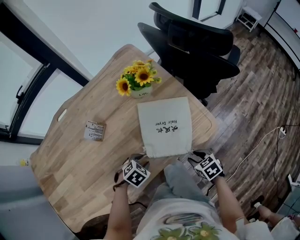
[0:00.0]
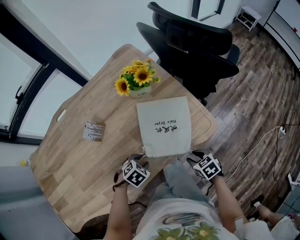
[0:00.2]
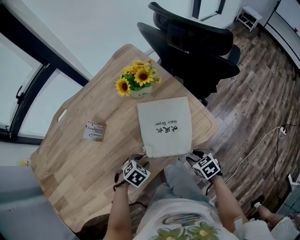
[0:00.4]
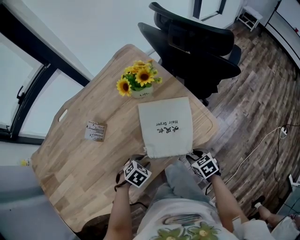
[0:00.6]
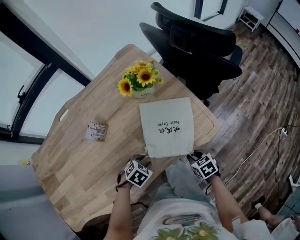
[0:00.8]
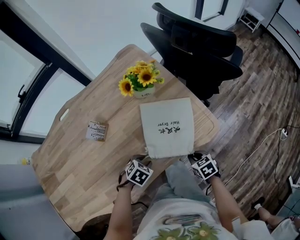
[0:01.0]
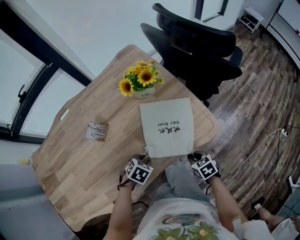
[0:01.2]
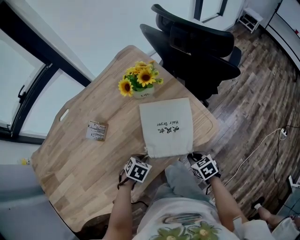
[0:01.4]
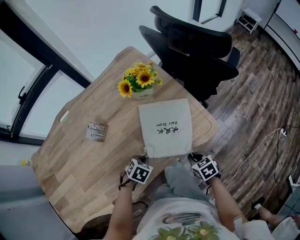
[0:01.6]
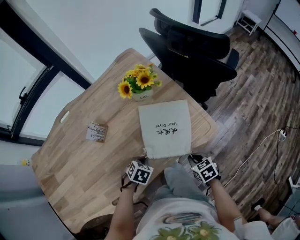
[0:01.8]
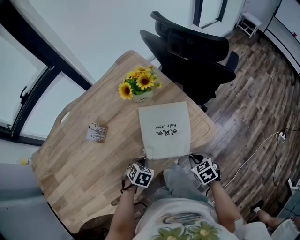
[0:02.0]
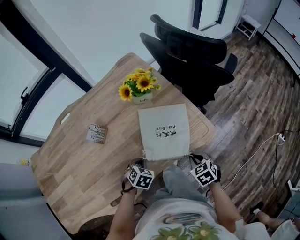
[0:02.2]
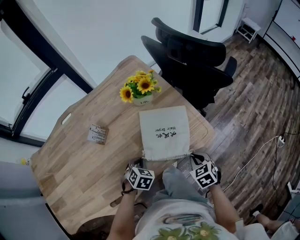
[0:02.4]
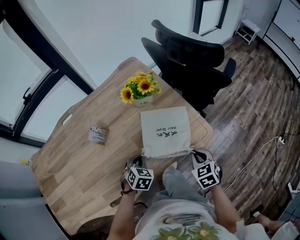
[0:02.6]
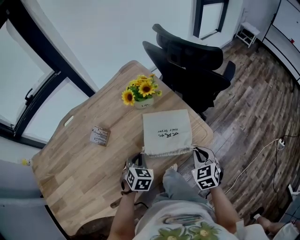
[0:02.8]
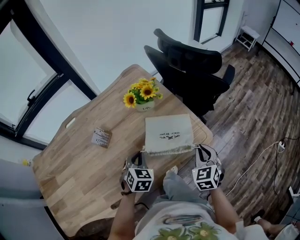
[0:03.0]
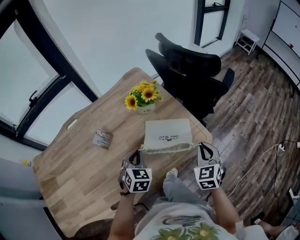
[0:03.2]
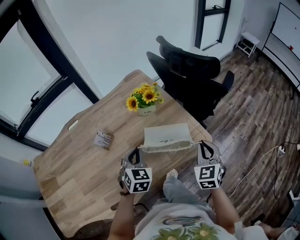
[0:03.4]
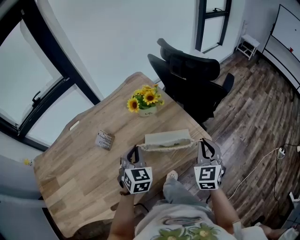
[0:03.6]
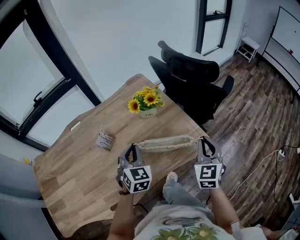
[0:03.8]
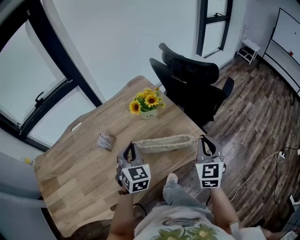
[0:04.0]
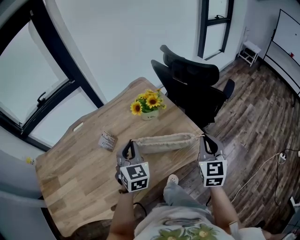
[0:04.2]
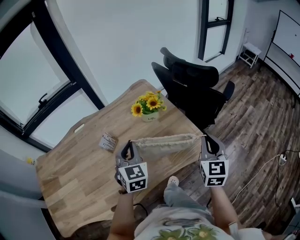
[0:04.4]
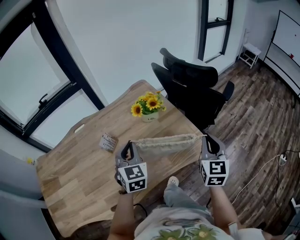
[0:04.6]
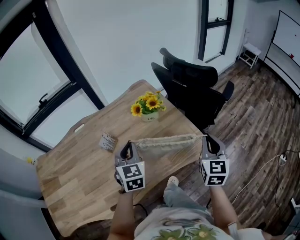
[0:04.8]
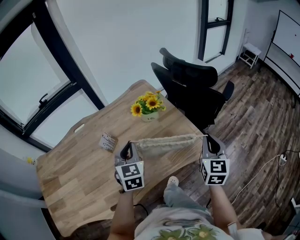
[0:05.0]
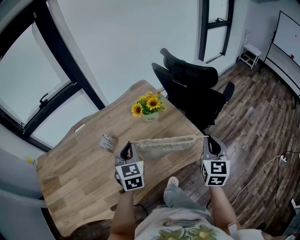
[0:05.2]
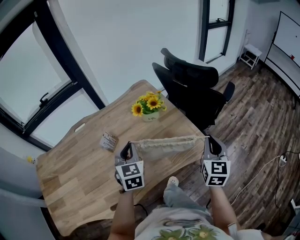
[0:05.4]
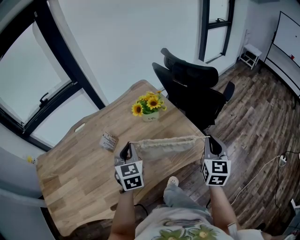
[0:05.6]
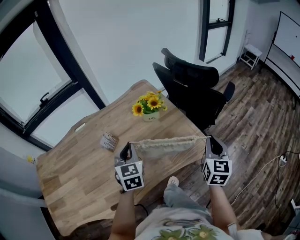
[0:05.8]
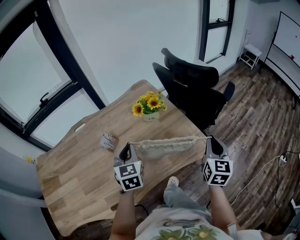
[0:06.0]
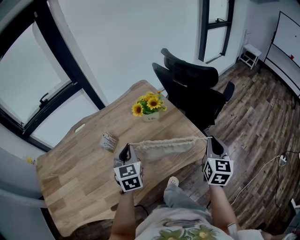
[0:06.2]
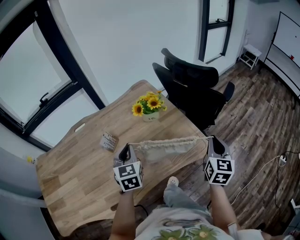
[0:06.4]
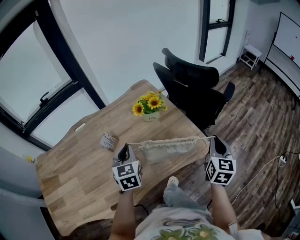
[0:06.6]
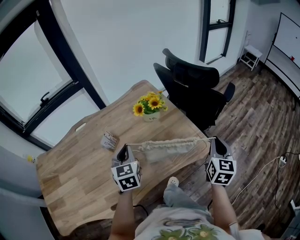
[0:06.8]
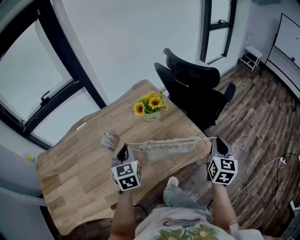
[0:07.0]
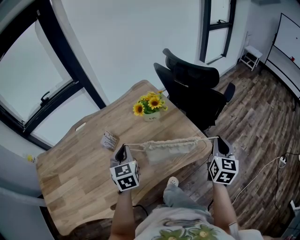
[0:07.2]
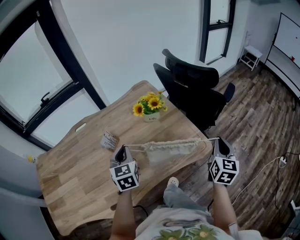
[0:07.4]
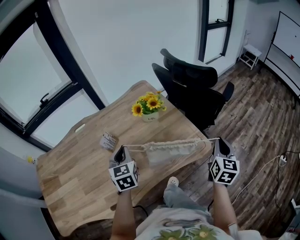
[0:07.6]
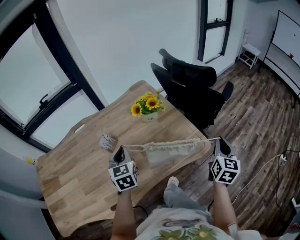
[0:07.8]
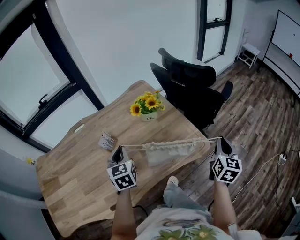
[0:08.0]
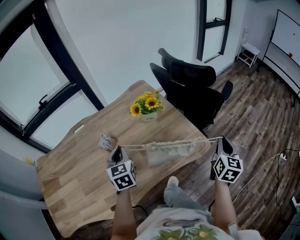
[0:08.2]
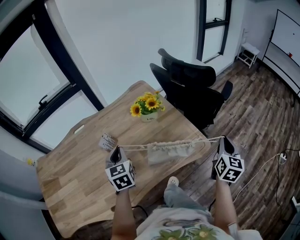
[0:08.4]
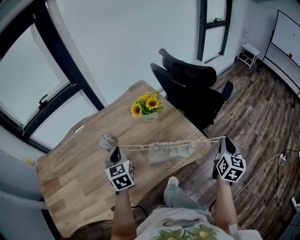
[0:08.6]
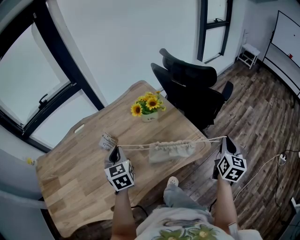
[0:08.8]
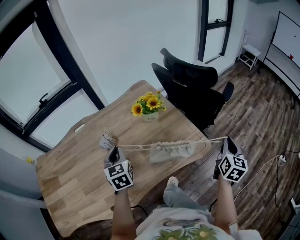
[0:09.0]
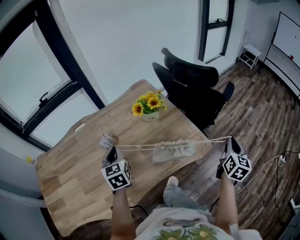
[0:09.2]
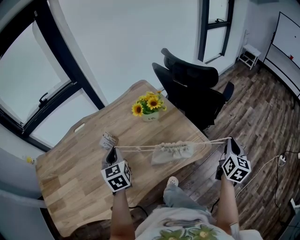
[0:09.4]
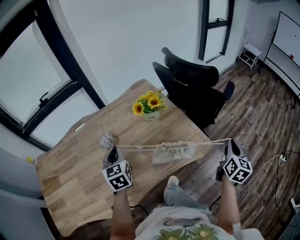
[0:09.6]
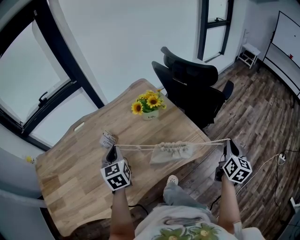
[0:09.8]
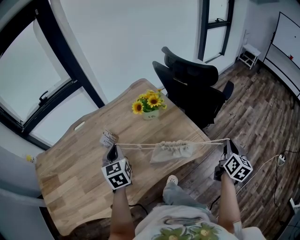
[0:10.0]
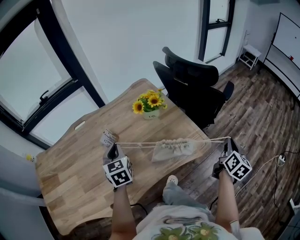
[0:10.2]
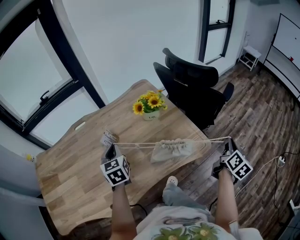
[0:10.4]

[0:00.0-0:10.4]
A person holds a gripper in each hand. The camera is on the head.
0:00.0 to 0:01.4: The right gripper closes up.
0:01.4 to 0:03.0: The left gripper goes roughly 15 cm upward and forward, and turns by roughly 40 degrees. Meanwhile the right gripper heads upward, covering roughly 20 cm, and changes its angle by roughly 40 degrees.
0:03.0 to 0:04.4: Both grippers travel together upward, roughly 15 cm. The right gripper turns by about 30 degrees; the left gripper changes its angle by approximately 30 degrees.
0:04.4 to 0:06.0: The grippers move only a little.
0:06.0 to 0:07.4: The grippers stay close to where they were, moving slightly.
0:07.4 to 0:09.0: The right gripper goes some 5 cm to the right.
0:09.0 to 0:10.4: The right gripper turns by roughly 20 degrees.

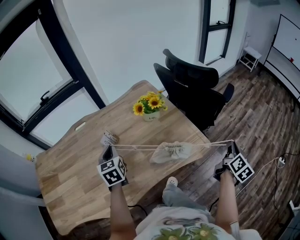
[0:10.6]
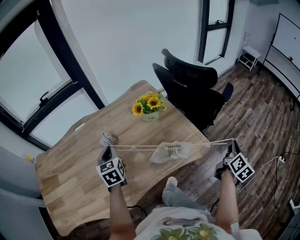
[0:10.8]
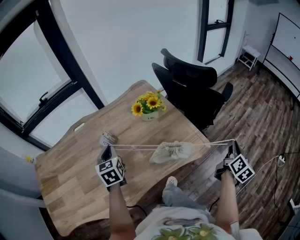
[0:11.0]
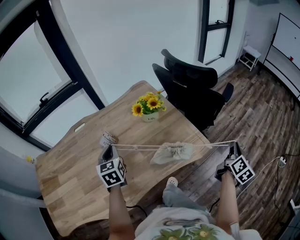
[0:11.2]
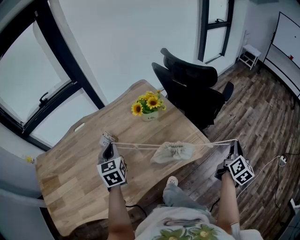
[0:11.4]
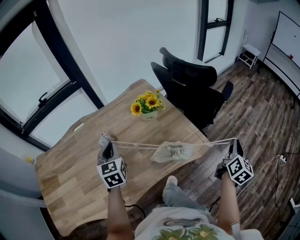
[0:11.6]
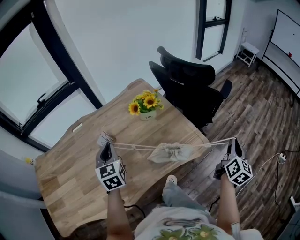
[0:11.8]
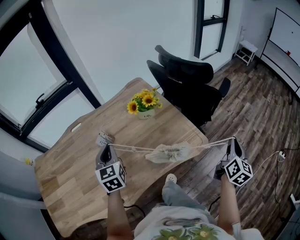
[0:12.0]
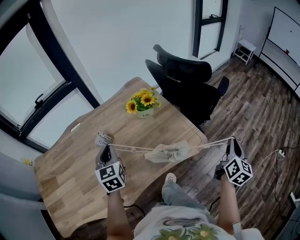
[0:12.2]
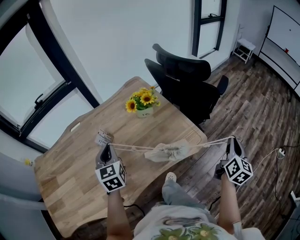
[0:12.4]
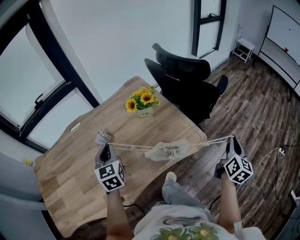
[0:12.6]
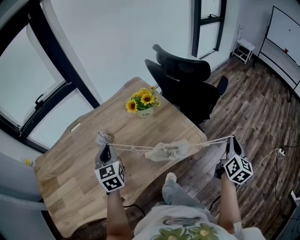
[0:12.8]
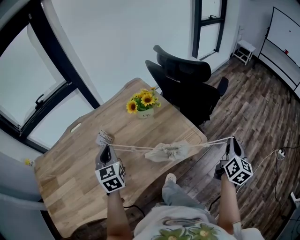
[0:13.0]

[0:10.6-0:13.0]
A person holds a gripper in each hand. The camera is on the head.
0:10.6 to 0:13.0: The grippers stay close to where they were, moving slightly.

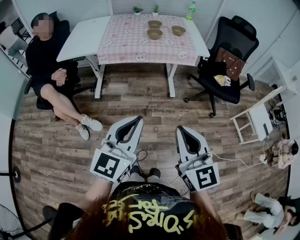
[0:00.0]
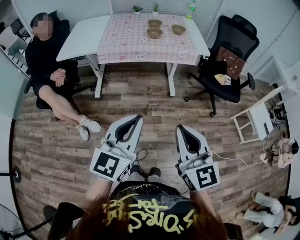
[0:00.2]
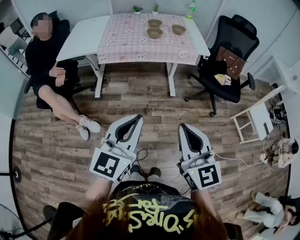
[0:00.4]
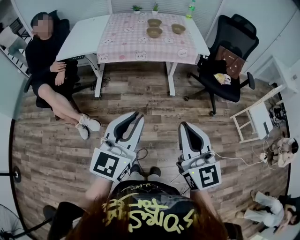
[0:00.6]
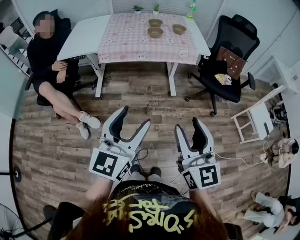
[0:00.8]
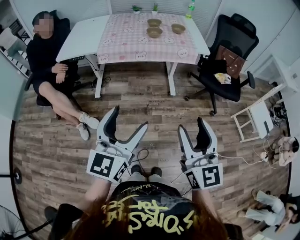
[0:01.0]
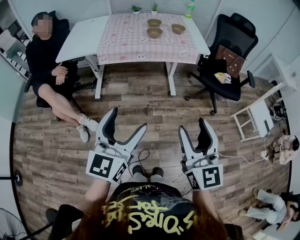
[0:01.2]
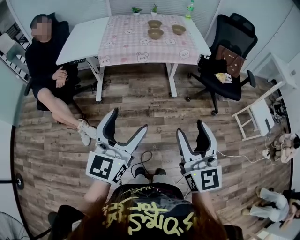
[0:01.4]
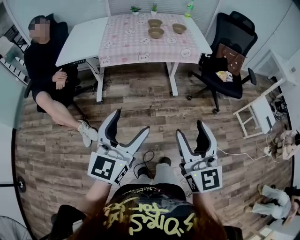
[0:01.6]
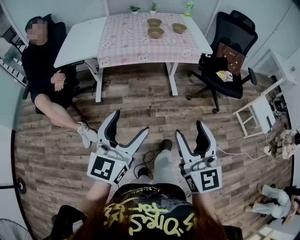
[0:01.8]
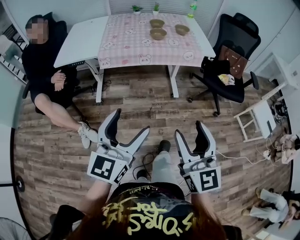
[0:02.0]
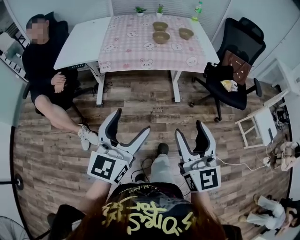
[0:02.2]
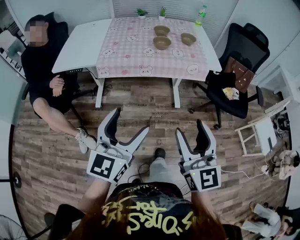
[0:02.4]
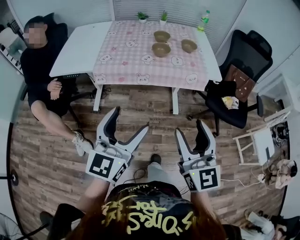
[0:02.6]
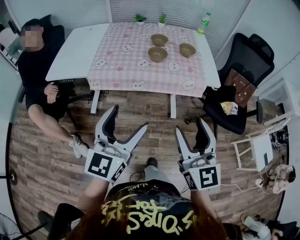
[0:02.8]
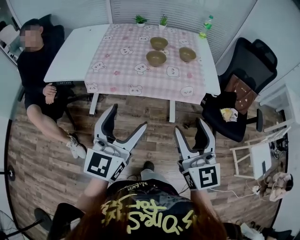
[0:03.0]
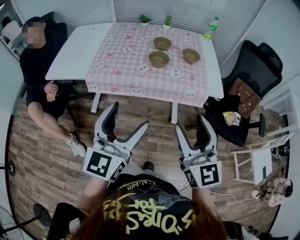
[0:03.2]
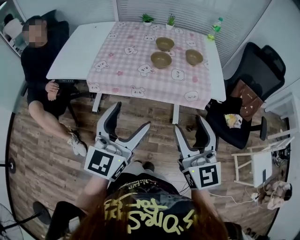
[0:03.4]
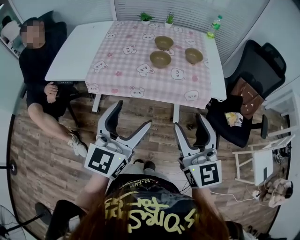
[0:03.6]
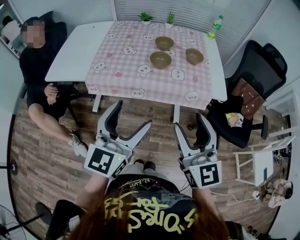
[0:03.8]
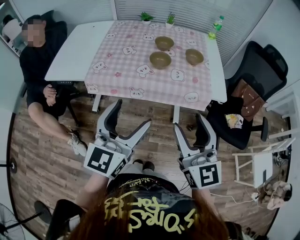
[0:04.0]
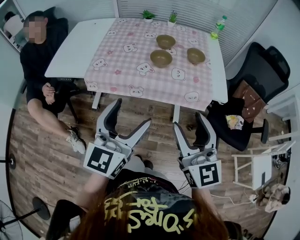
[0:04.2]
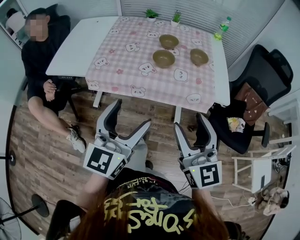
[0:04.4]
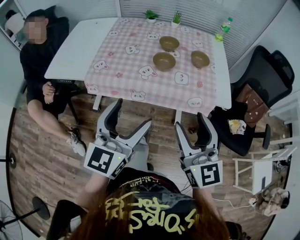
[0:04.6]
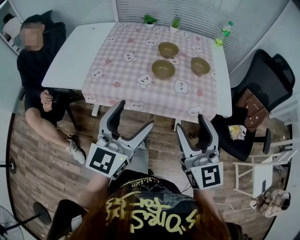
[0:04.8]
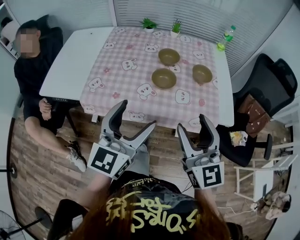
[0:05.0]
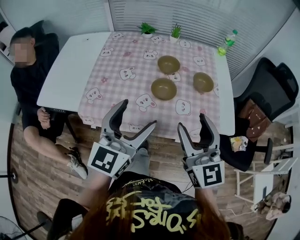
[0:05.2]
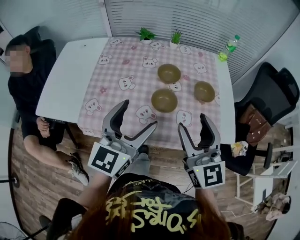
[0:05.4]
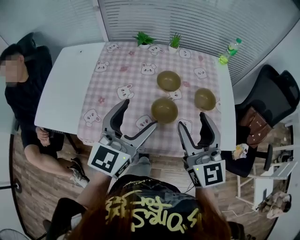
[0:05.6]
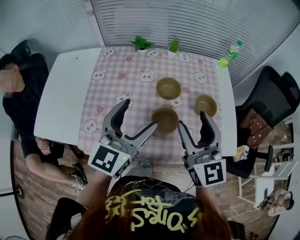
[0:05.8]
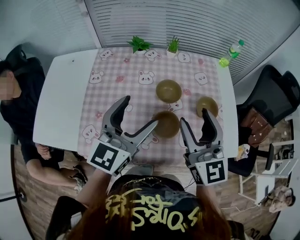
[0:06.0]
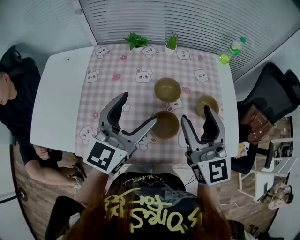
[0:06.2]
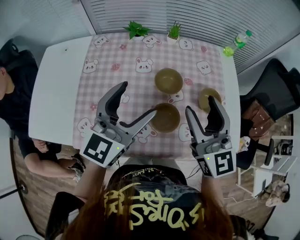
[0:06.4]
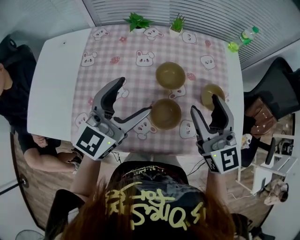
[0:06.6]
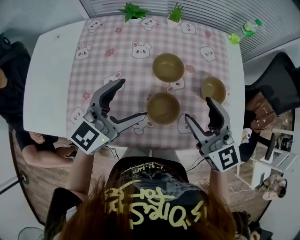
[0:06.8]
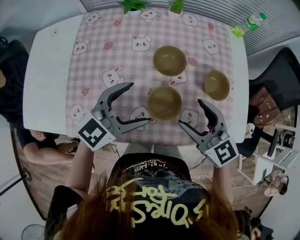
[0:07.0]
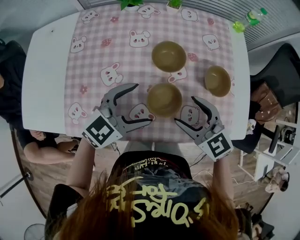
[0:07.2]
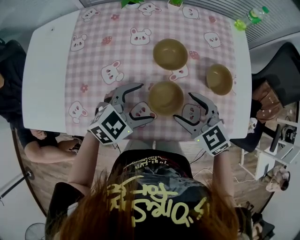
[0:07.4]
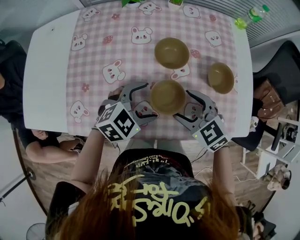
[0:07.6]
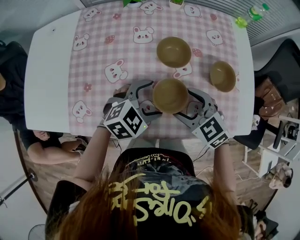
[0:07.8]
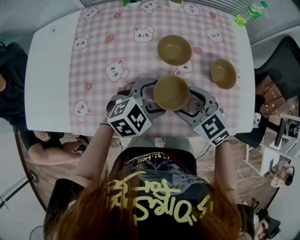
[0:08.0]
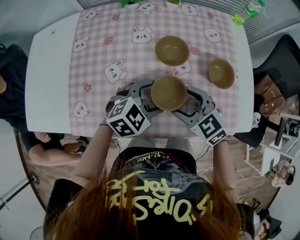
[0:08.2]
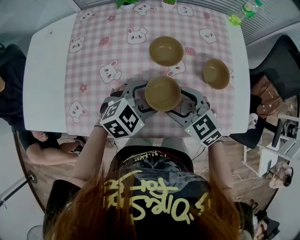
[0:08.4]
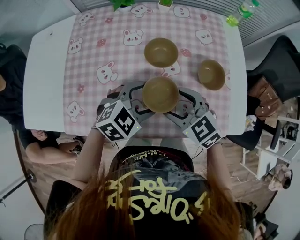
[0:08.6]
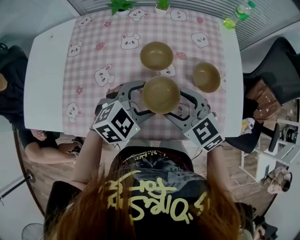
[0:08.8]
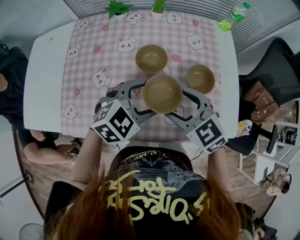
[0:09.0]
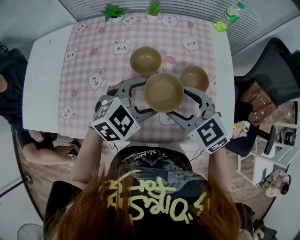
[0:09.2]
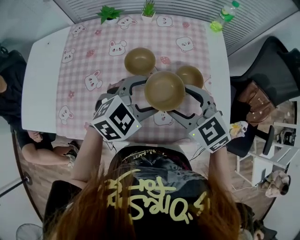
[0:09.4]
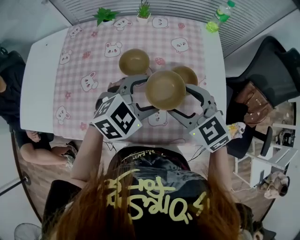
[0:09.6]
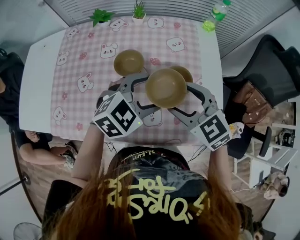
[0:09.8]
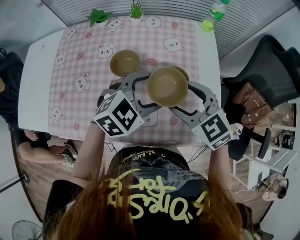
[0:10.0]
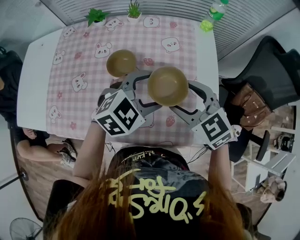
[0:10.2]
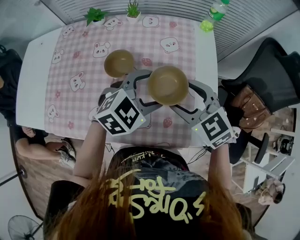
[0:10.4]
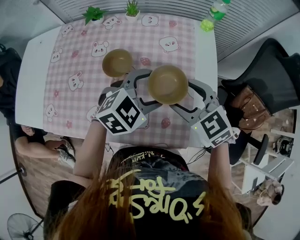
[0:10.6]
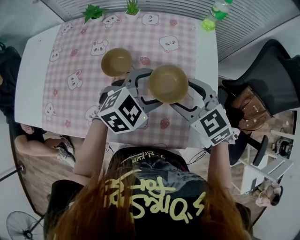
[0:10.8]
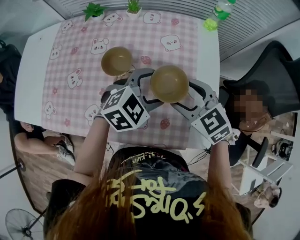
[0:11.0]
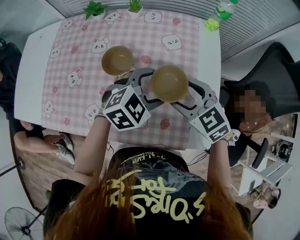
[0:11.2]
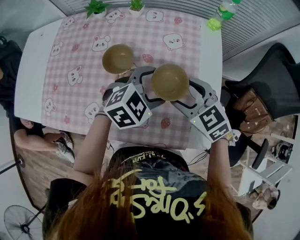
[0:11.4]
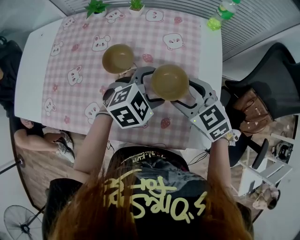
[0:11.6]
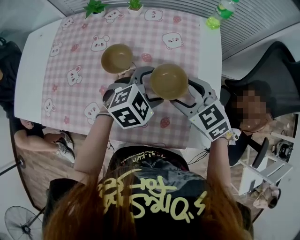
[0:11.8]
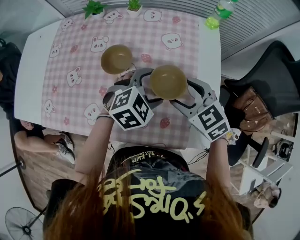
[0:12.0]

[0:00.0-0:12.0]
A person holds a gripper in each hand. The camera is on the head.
0:00.0 to 0:01.6: The right gripper opens; the left gripper goes about 5 cm to the left, and opens its fingers.
0:01.6 to 0:03.0: Both grippers travel together forward, about 30 cm.
0:03.0 to 0:04.4: Both grippers move forward, approximately 5 cm.
0:04.4 to 0:06.0: The grippers both shift forward by some 35 cm.
0:06.0 to 0:07.6: The two grippers go approximately 20 cm downward. The left gripper angles its fingers downward, by roughly 40 degrees. The right gripper tips its fingers downward by roughly 40 degrees.
0:07.6 to 0:09.0: The right gripper heads upward, covering roughly 5 cm; the left gripper shifts approximately 10 cm to the right and upward.
0:09.0 to 0:10.4: Both grippers move to the right, some 15 cm.
0:10.4 to 0:12.0: The two grippers go some 5 cm downward.
